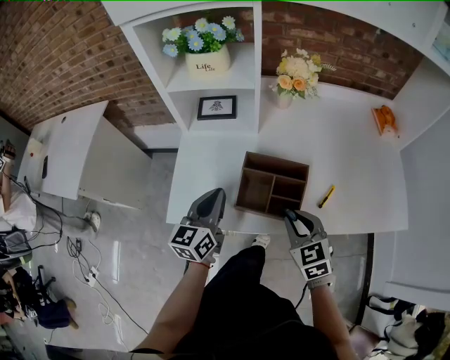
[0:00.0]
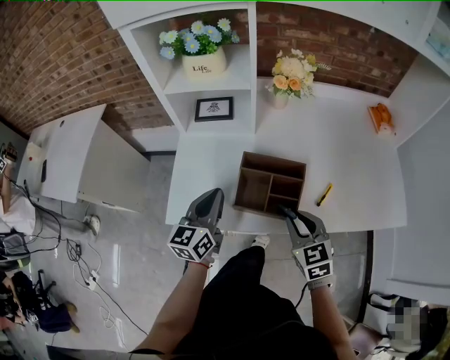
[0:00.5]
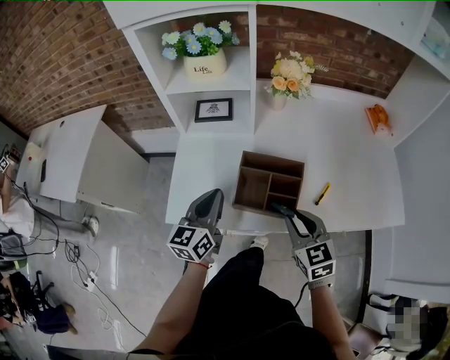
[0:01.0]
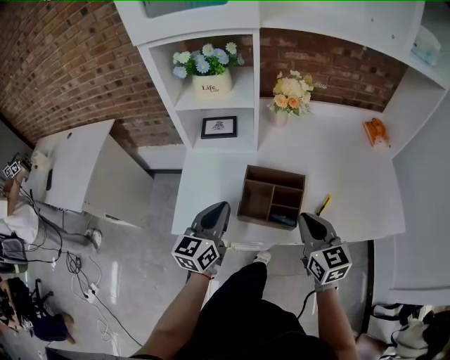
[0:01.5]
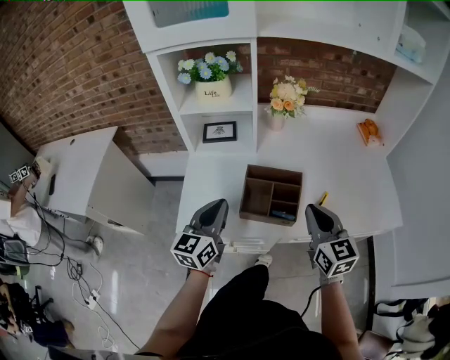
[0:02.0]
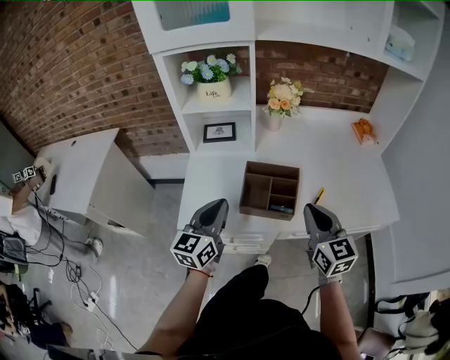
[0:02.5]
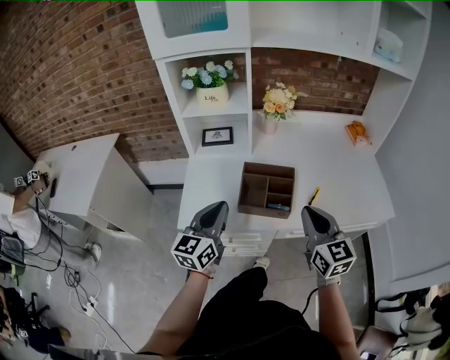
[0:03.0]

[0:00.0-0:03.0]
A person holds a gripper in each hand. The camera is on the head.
0:00.0 to 0:01.5: The right gripper heads upward, covering roughly 5 cm, and turns by approximately 20 degrees.
0:01.5 to 0:03.0: Both grippers move backward and upward, some 10 cm.

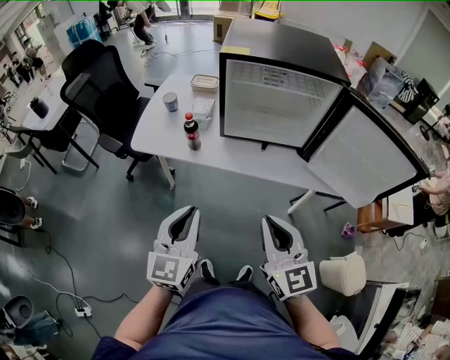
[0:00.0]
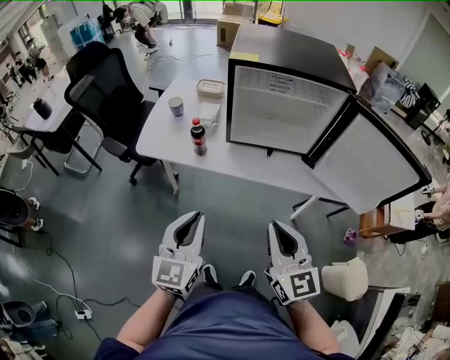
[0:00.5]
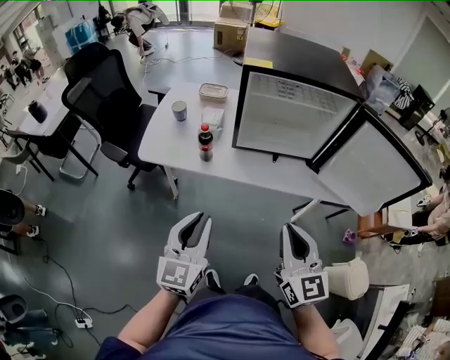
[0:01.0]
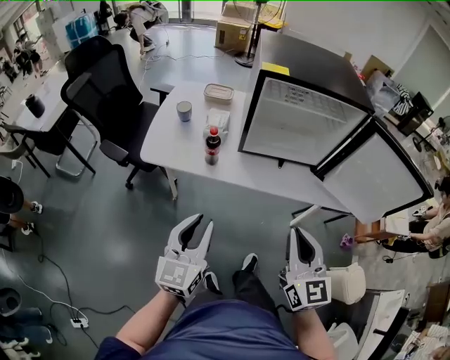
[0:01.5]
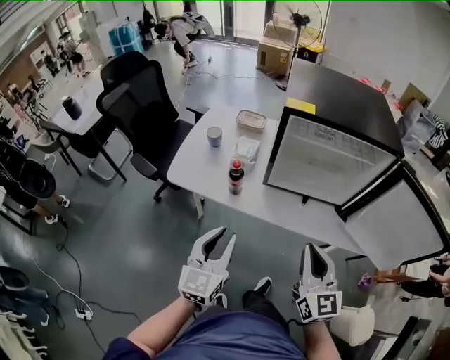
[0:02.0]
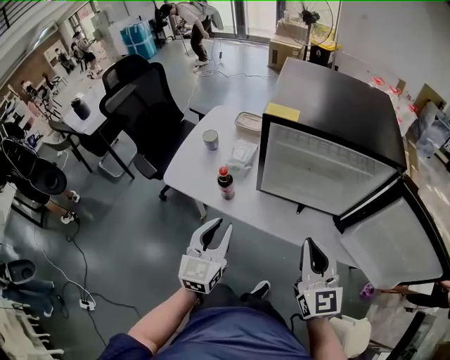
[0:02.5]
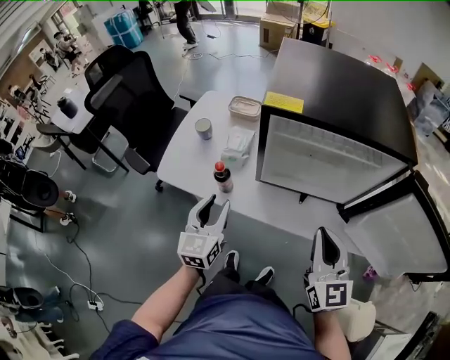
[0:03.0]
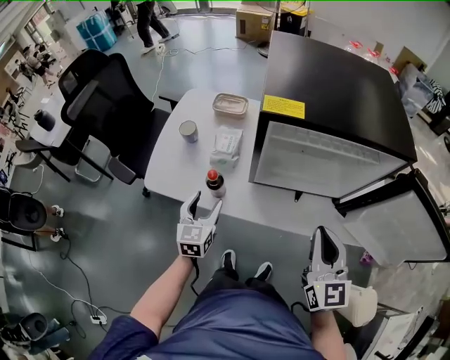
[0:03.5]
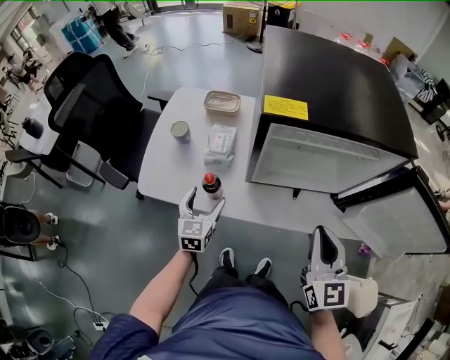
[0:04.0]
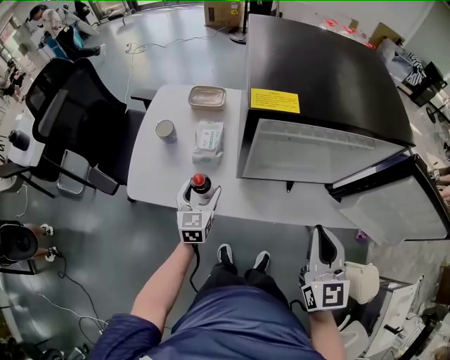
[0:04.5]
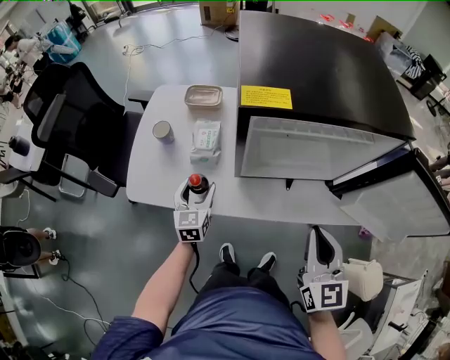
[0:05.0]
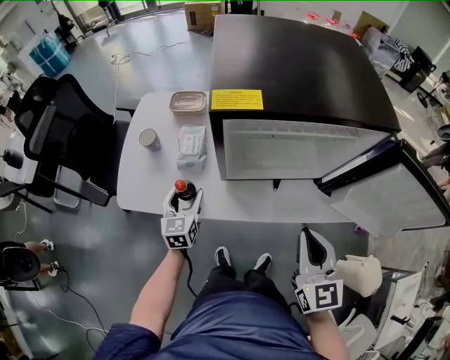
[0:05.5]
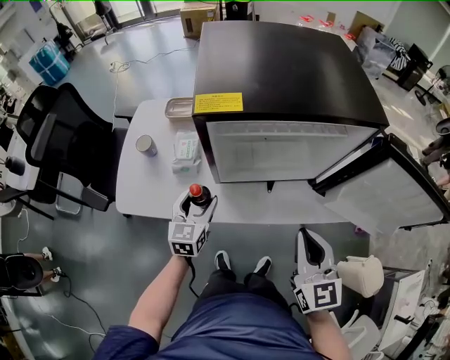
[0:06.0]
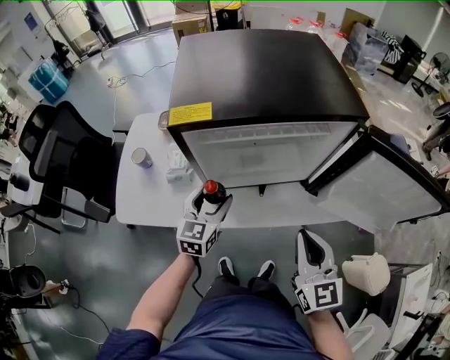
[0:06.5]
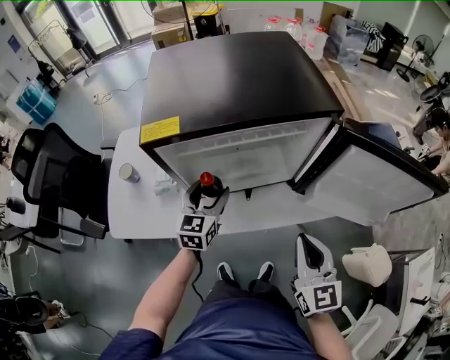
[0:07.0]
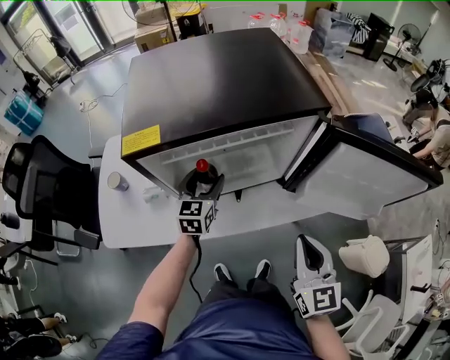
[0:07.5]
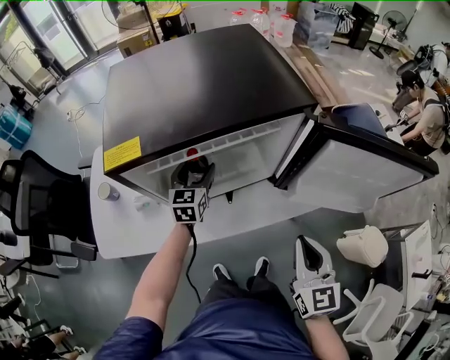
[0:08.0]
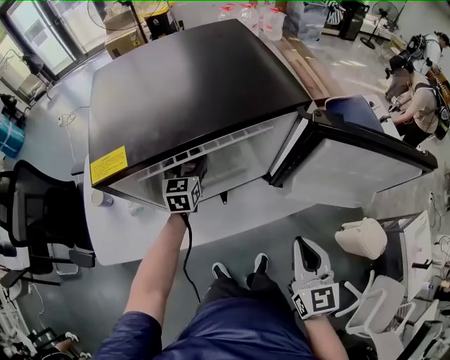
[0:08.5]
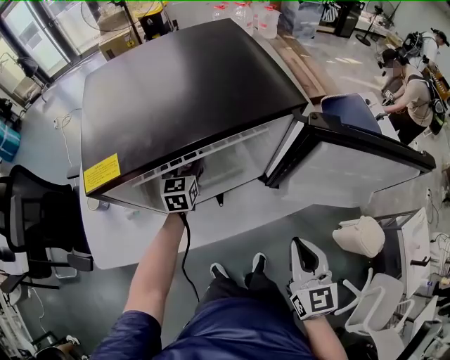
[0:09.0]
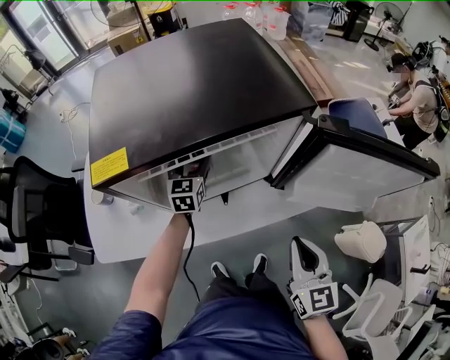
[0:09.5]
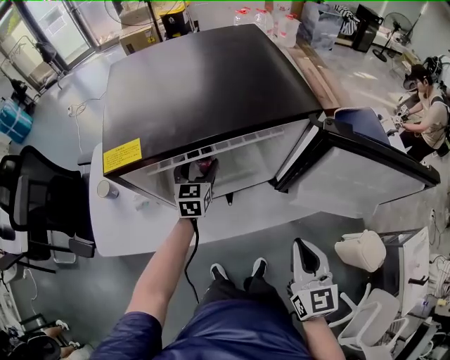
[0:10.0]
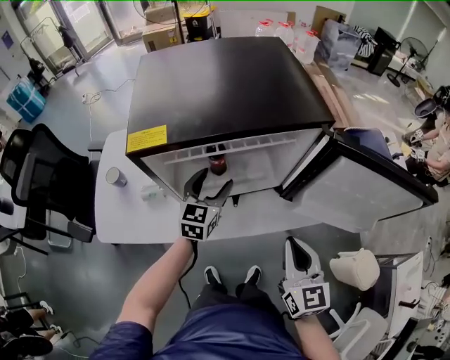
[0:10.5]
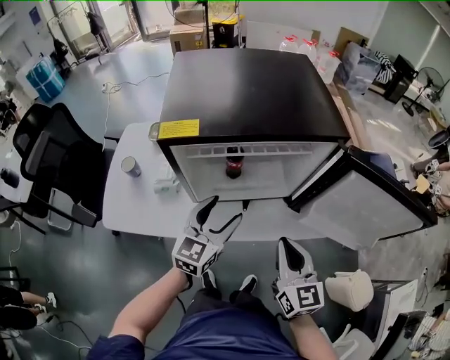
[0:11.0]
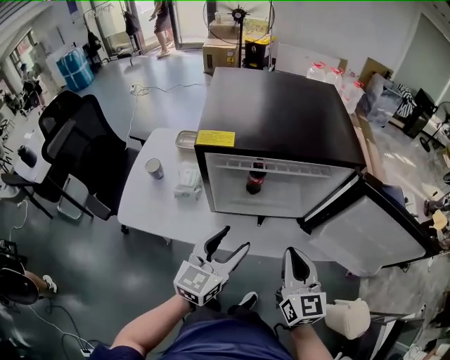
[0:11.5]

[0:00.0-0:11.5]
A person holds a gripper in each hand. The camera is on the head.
0:00.0 to 0:02.0: The grippers both shift forward by about 10 cm.
0:02.0 to 0:04.0: The right gripper heads forward, covering approximately 10 cm, while the left gripper shifts approximately 30 cm forward and downward, and opens.
0:04.0 to 0:06.0: The left gripper moves to the right, roughly 10 cm.
0:06.0 to 0:07.5: The left gripper goes about 20 cm to the right and forward. Meanwhile the right gripper shifts some 10 cm to the right.
0:07.5 to 0:09.5: The left gripper shifts roughly 10 cm forward.
0:09.5 to 0:11.5: The left gripper moves backward and upward, roughly 30 cm. Meanwhile the right gripper goes roughly 10 cm to the left, and rotates roughly 20 degrees.

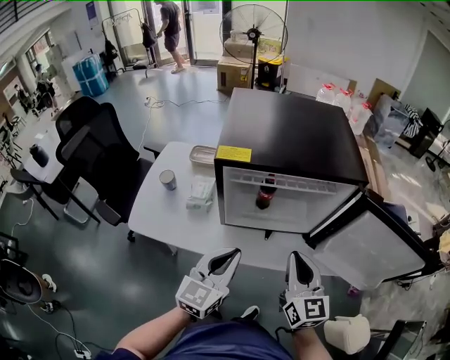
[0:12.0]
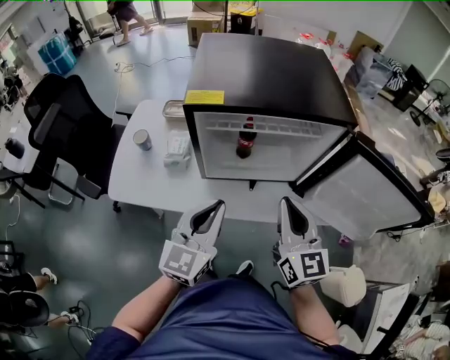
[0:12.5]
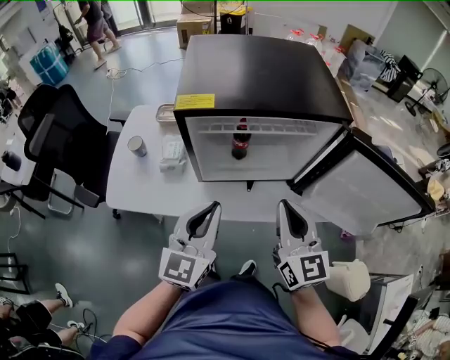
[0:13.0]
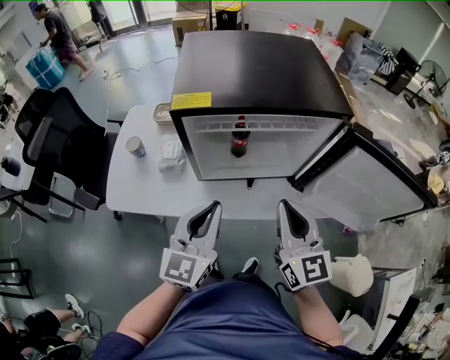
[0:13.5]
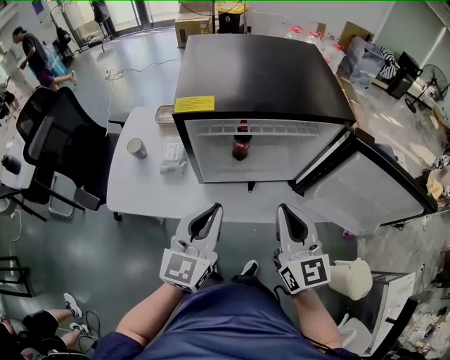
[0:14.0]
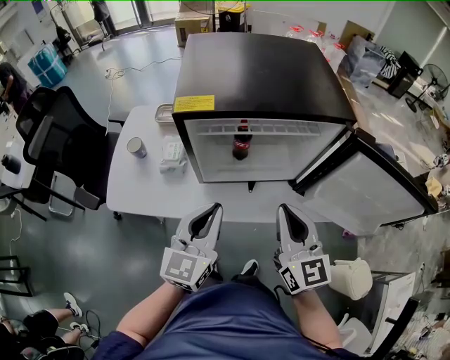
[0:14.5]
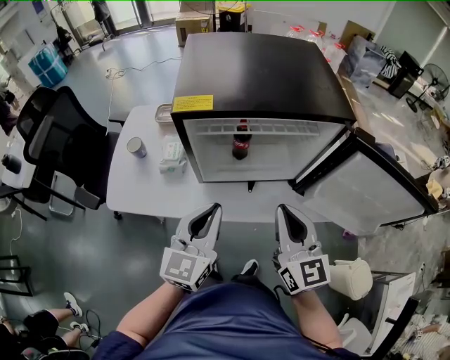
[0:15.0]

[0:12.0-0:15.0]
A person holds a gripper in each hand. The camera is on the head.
0:12.0 to 0:13.5: The grippers make only small movements.
0:13.5 to 0:15.0: Both grippers stay put.

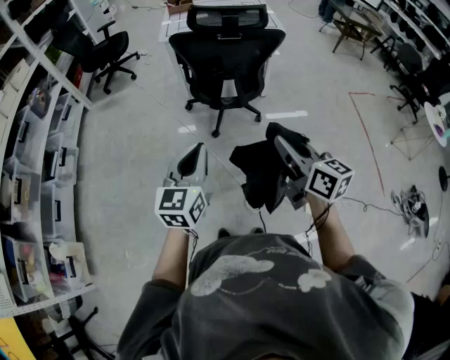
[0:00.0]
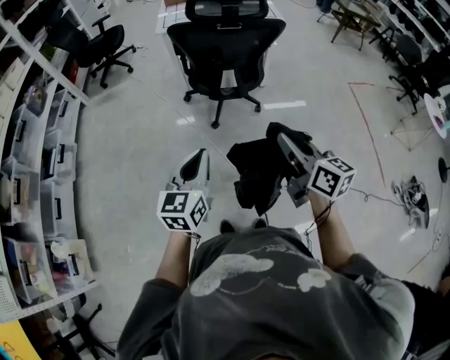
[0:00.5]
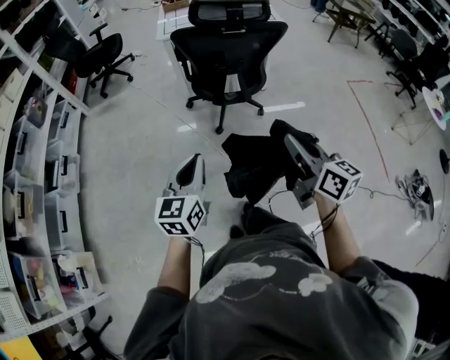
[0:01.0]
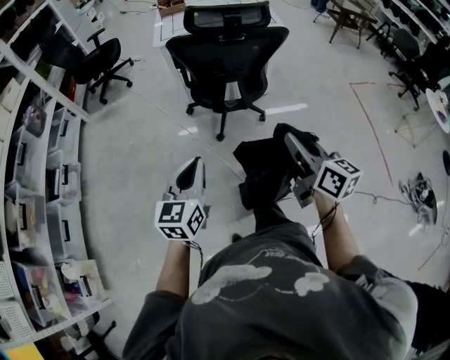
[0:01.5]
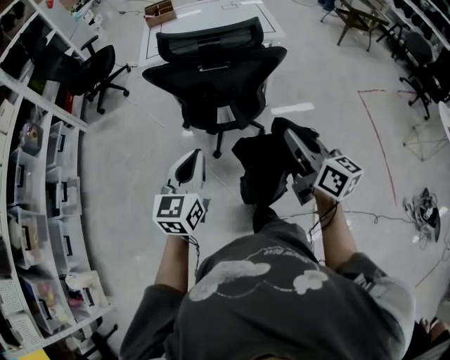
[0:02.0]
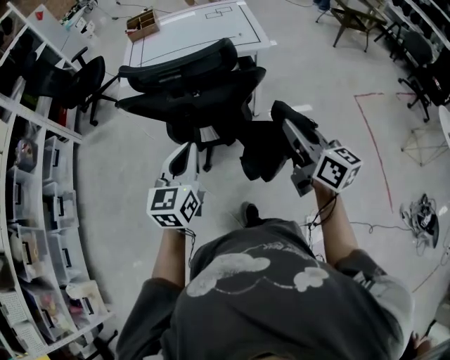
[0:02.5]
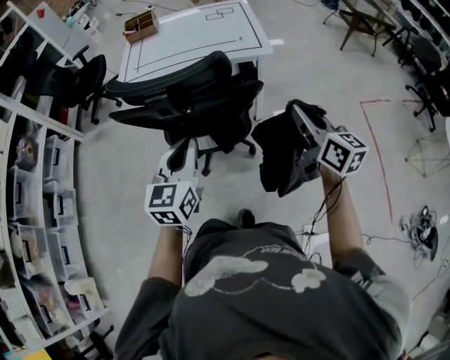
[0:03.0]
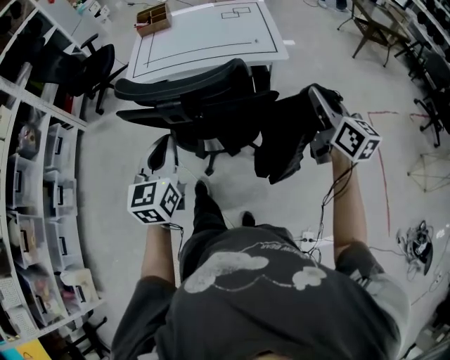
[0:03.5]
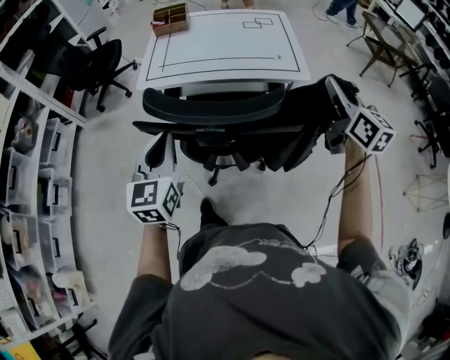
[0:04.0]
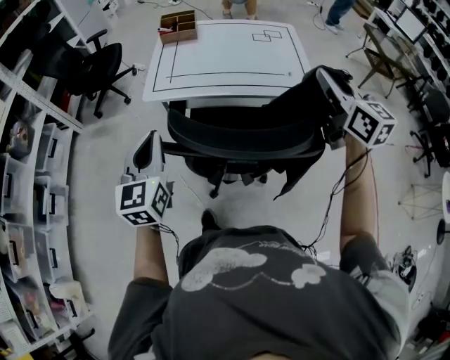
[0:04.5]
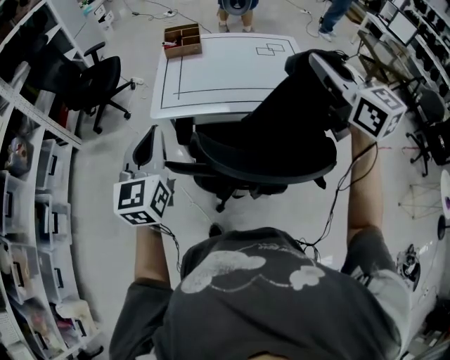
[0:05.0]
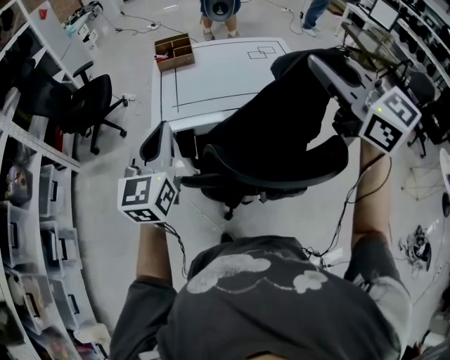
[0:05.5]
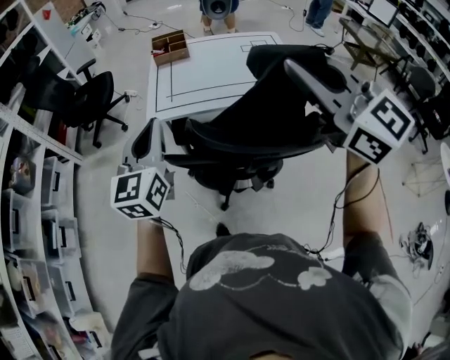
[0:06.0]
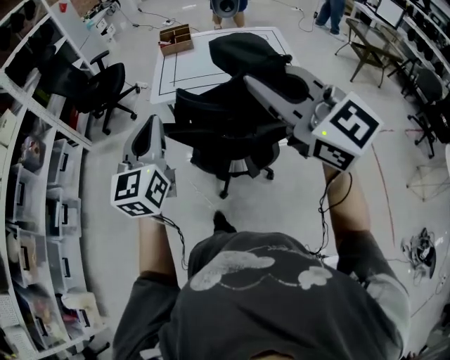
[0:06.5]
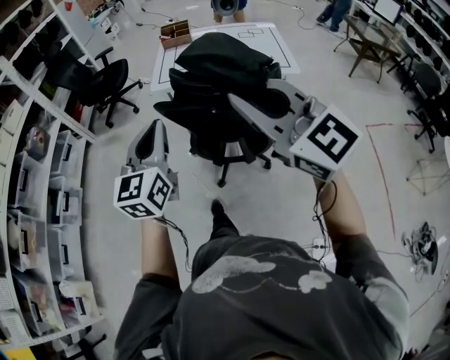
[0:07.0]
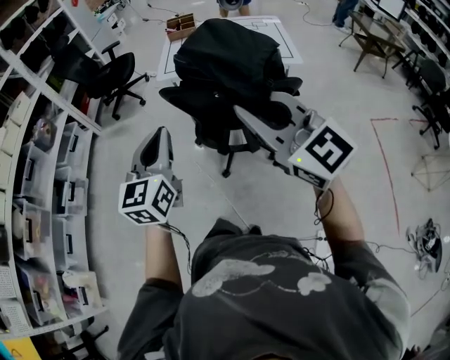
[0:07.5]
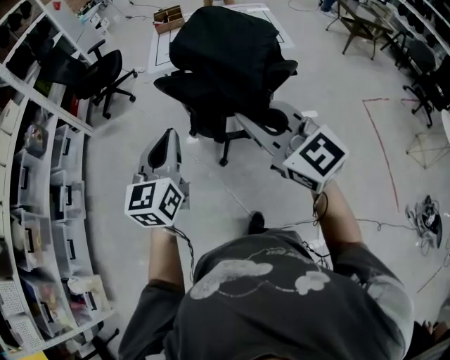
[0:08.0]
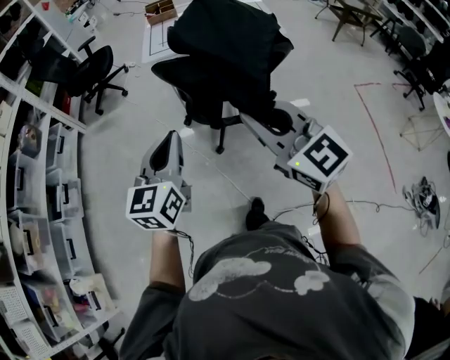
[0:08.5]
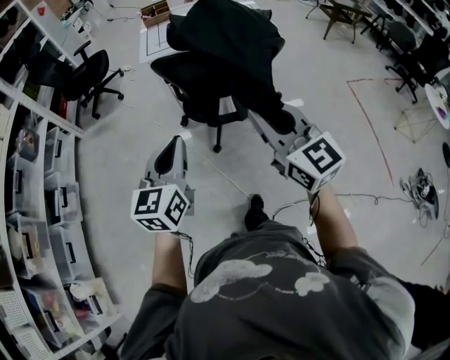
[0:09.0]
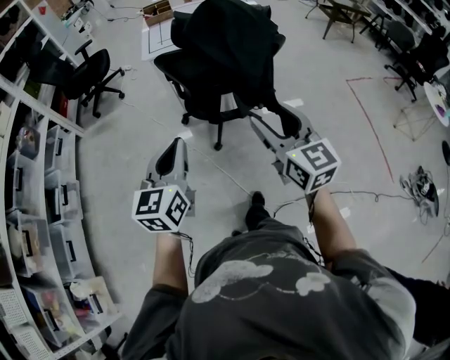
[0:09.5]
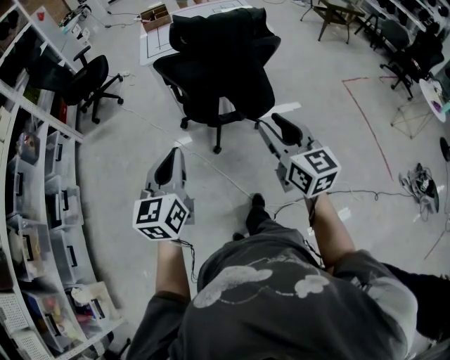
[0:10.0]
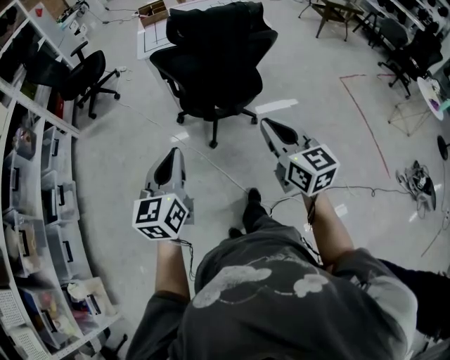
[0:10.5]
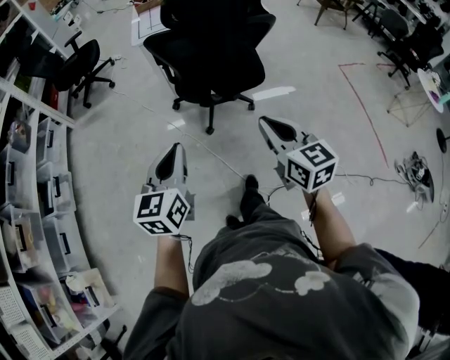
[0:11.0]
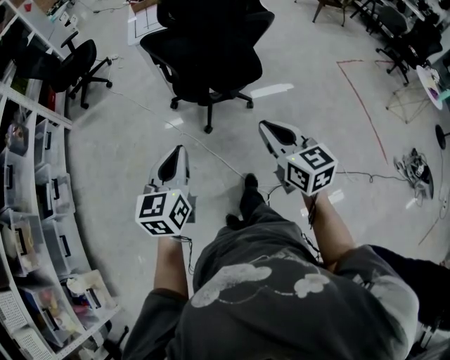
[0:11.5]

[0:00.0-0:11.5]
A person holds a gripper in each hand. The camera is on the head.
0:00.0 to 0:02.0: The right gripper travels forward and to the right by some 25 cm, while the left gripper is displaced forward by about 25 cm.
0:02.0 to 0:04.0: The grippers both shift forward by about 35 cm.
0:04.0 to 0:06.0: The right gripper heads to the left and upward, covering about 30 cm, and turns by roughly 40 degrees. The left gripper is displaced forward, to the left and upward by approximately 15 cm.
0:06.0 to 0:07.5: Both grippers travel together backward, approximately 30 cm.
0:07.5 to 0:09.5: The right gripper goes roughly 15 cm downward and backward, changes its angle by about 40 degrees, and opens its fingers. The left gripper shifts approximately 15 cm backward, downward and to the left.
0:09.5 to 0:11.5: The grippers both shift downward and backward by about 10 cm. The right gripper closes.
